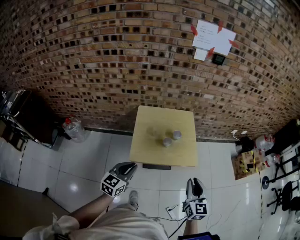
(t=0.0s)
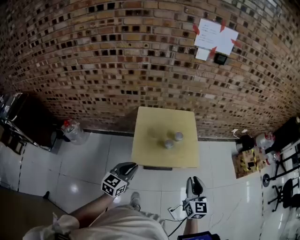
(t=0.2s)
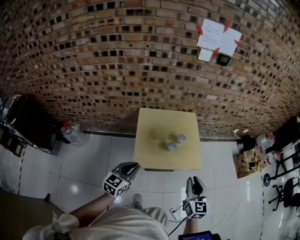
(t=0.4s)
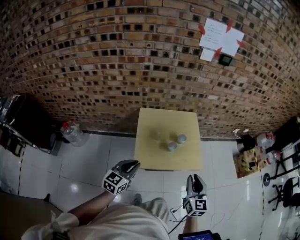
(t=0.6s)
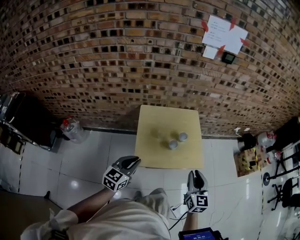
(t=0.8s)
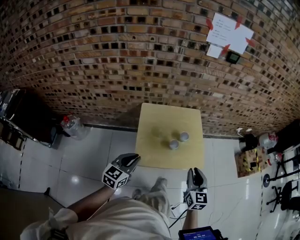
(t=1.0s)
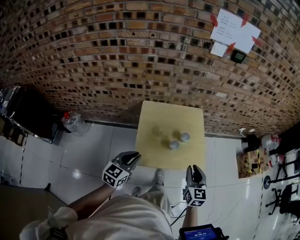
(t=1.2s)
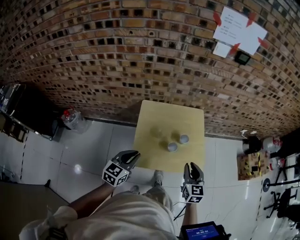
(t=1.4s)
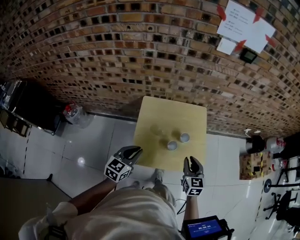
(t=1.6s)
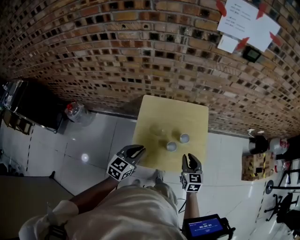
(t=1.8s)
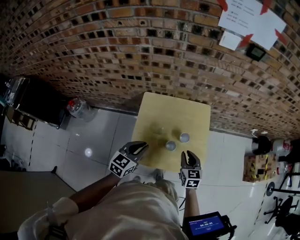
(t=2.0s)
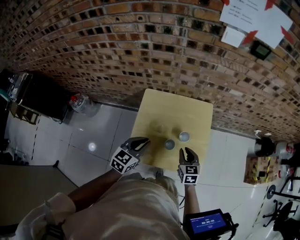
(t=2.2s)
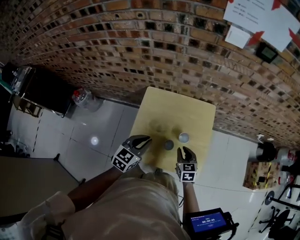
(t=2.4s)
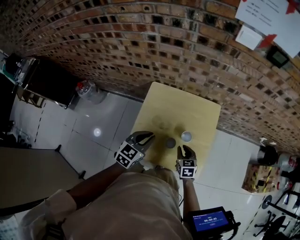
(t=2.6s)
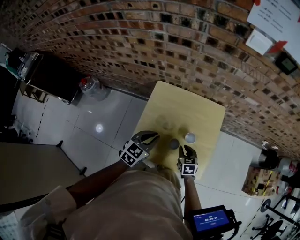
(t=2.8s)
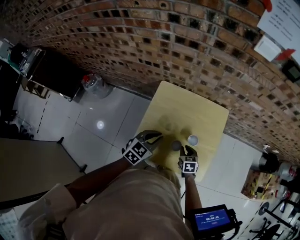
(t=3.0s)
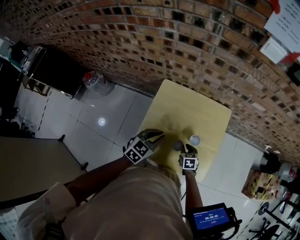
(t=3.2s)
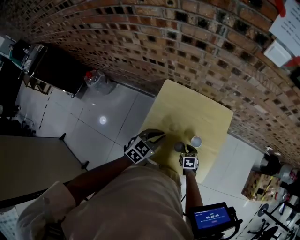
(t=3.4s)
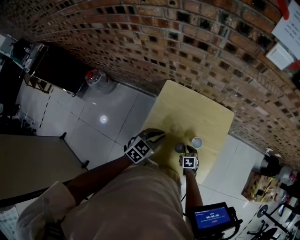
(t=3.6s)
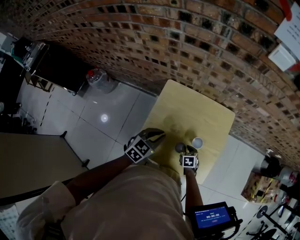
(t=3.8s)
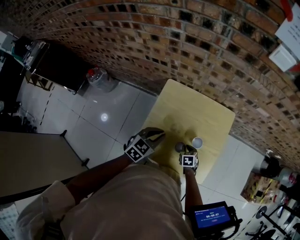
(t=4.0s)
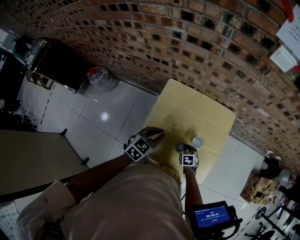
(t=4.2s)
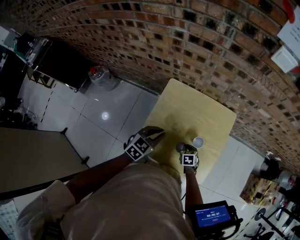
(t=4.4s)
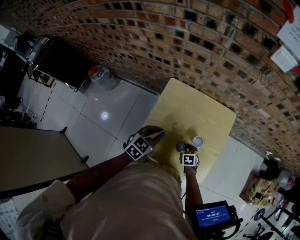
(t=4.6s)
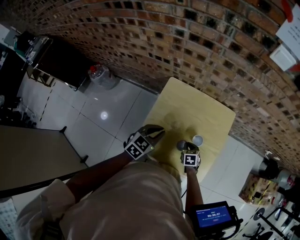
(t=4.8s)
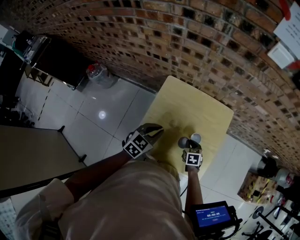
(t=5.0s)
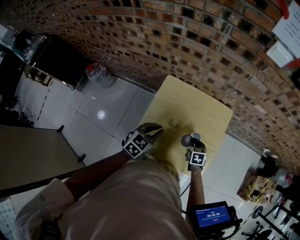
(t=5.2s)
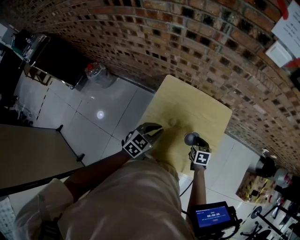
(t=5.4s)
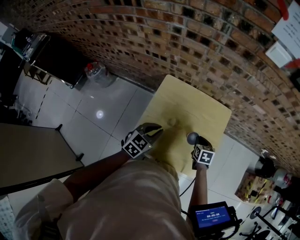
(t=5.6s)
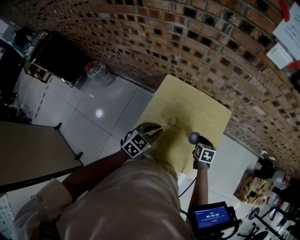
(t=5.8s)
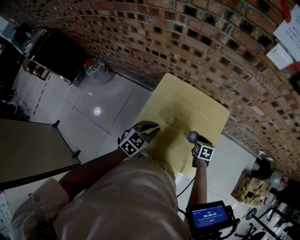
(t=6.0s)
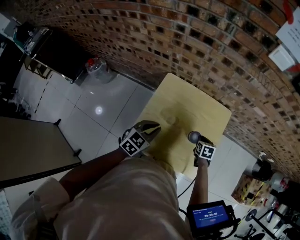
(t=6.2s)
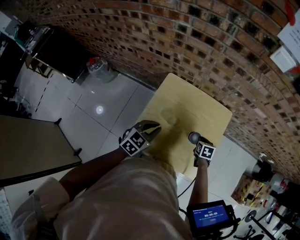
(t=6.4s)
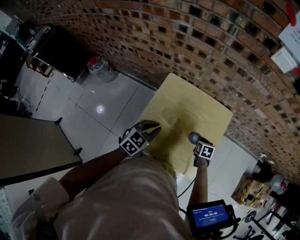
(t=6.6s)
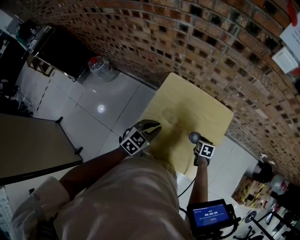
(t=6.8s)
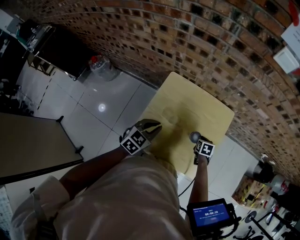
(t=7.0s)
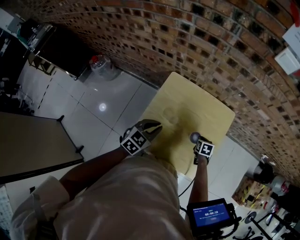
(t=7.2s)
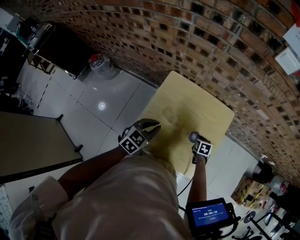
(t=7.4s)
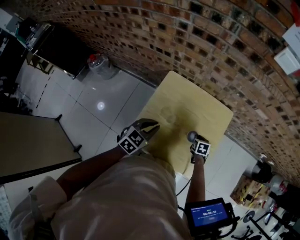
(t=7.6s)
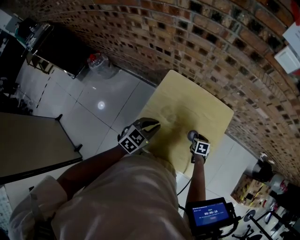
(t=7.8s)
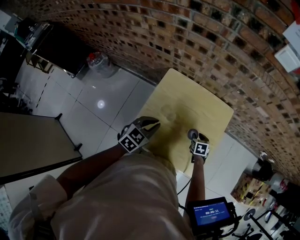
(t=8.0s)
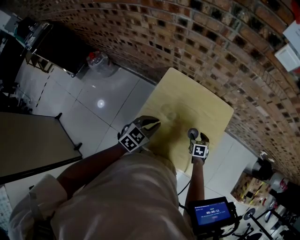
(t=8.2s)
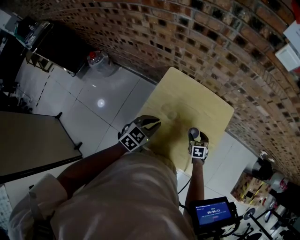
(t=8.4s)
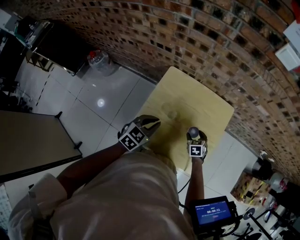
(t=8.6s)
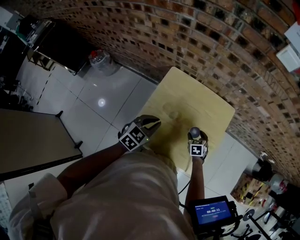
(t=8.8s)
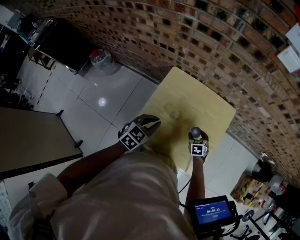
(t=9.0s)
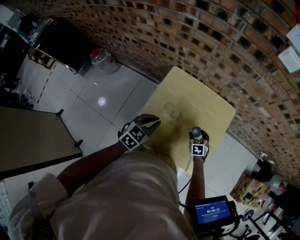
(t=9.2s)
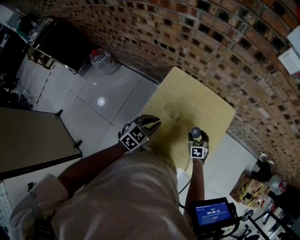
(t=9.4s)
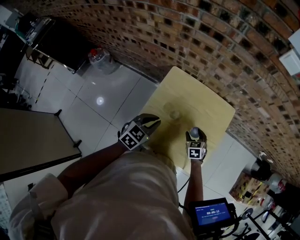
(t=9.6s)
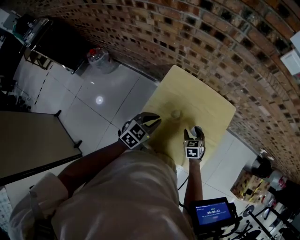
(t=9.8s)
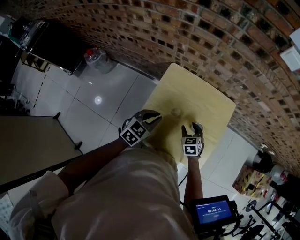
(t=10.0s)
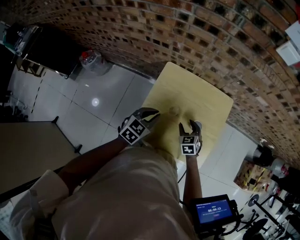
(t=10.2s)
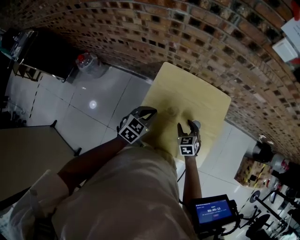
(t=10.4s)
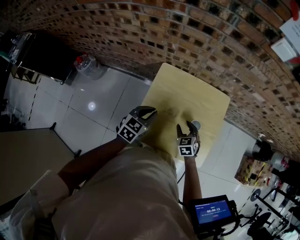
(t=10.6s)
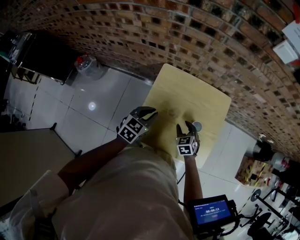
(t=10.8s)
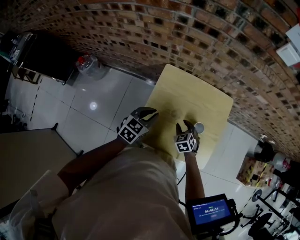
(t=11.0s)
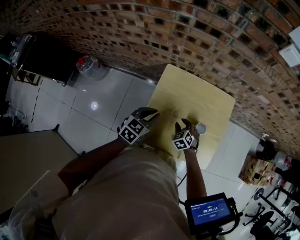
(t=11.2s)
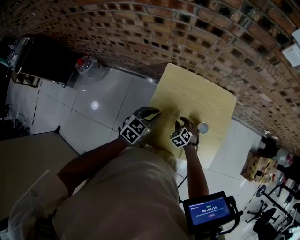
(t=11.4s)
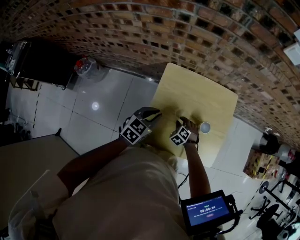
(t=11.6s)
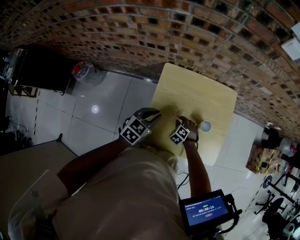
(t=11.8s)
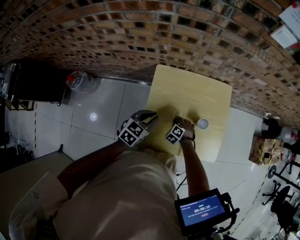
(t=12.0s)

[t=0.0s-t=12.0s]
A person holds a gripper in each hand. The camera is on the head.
t=0.0s to t=1.6s: The left gripper travels forward by roughly 20 cm; the right gripper moves forward and downward, roughly 25 cm.
t=1.6s to t=3.0s: The left gripper travels forward, to the right and downward by some 15 cm. Meanwhile the right gripper moves downward and forward, roughly 25 cm, and turns by roughly 30 degrees.
t=3.0s to t=4.4s: The right gripper is displaced downward by about 5 cm.
t=4.4s to t=6.0s: The right gripper is displaced to the right, upward and forward by roughly 15 cm.
t=6.0s to t=7.6s: The right gripper goes about 5 cm downward.
t=7.6s to t=9.0s: The right gripper changes its angle by roughly 20 degrees, and opens.
t=9.0s to t=10.4s: The left gripper ends up approximately 5 cm from where it was, while the right gripper heads to the left and upward, covering about 15 cm.
t=10.4s to t=12.0s: The right gripper heads downward and to the left, covering approximately 20 cm, rotates roughly 40 degrees, and closes up.

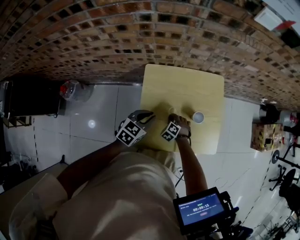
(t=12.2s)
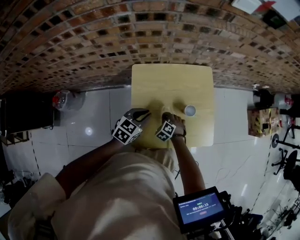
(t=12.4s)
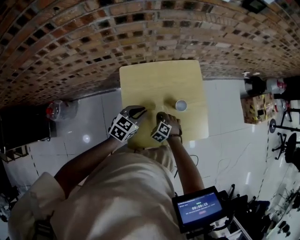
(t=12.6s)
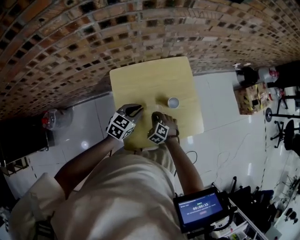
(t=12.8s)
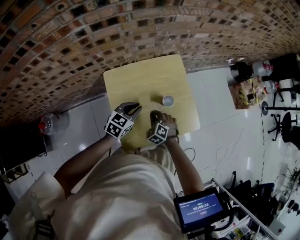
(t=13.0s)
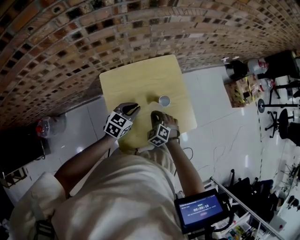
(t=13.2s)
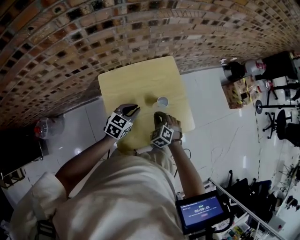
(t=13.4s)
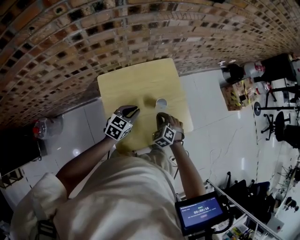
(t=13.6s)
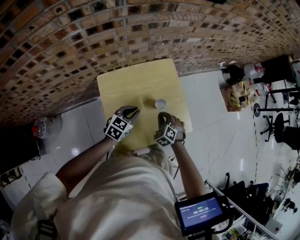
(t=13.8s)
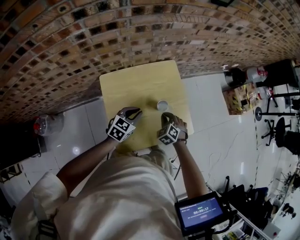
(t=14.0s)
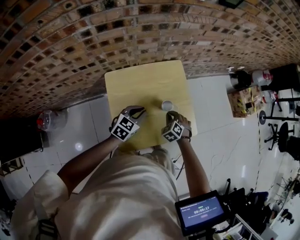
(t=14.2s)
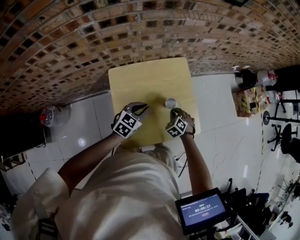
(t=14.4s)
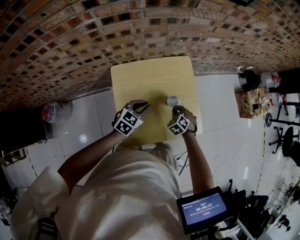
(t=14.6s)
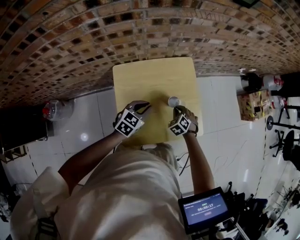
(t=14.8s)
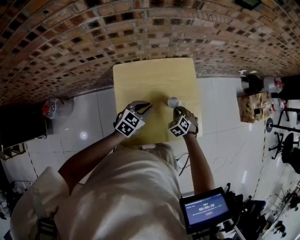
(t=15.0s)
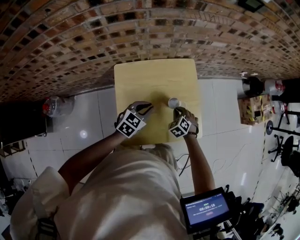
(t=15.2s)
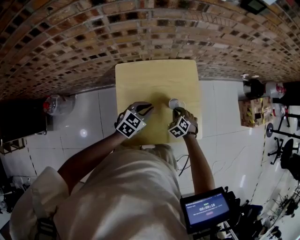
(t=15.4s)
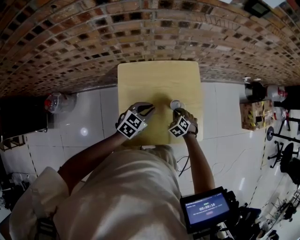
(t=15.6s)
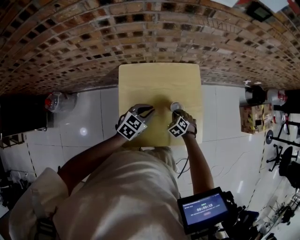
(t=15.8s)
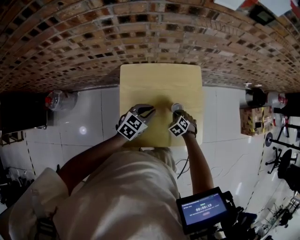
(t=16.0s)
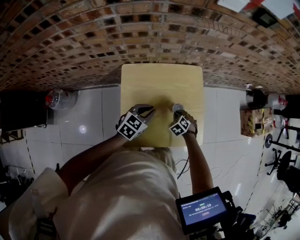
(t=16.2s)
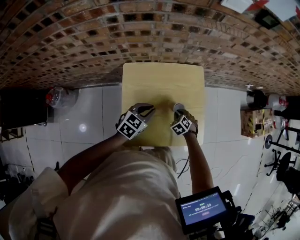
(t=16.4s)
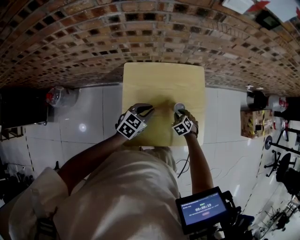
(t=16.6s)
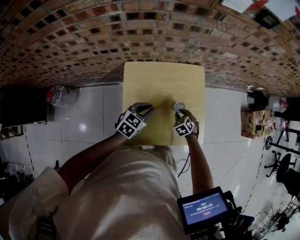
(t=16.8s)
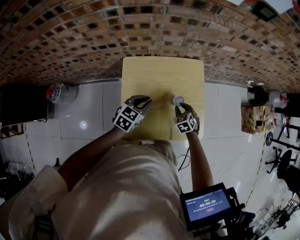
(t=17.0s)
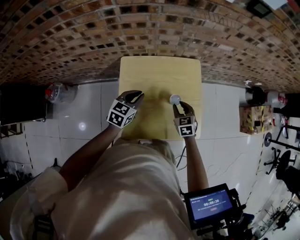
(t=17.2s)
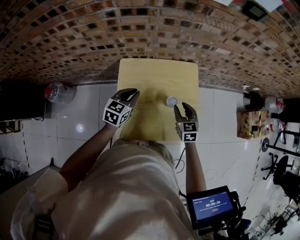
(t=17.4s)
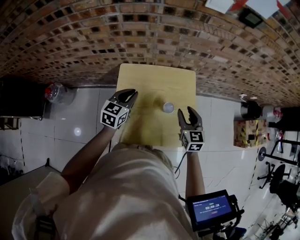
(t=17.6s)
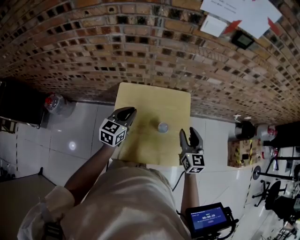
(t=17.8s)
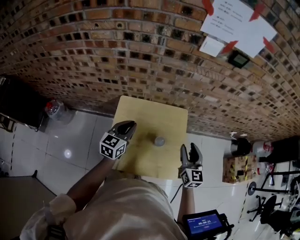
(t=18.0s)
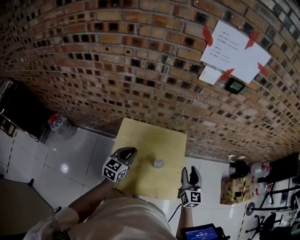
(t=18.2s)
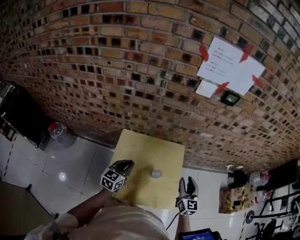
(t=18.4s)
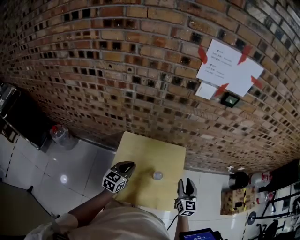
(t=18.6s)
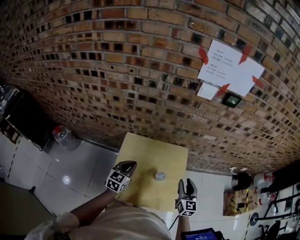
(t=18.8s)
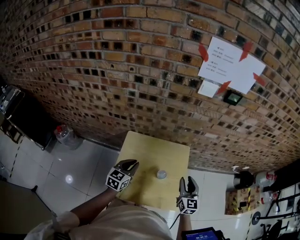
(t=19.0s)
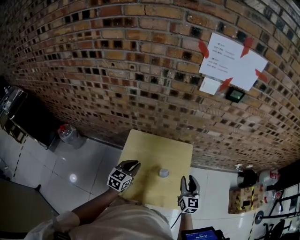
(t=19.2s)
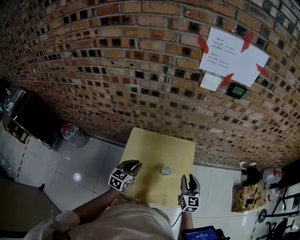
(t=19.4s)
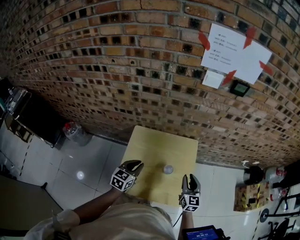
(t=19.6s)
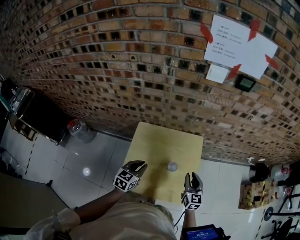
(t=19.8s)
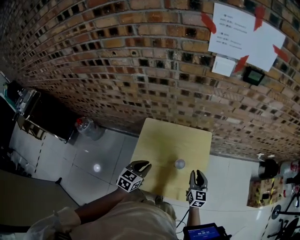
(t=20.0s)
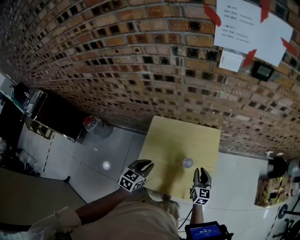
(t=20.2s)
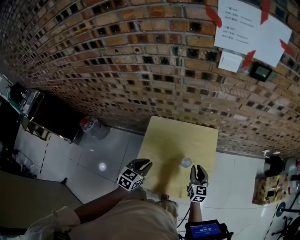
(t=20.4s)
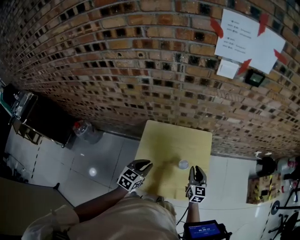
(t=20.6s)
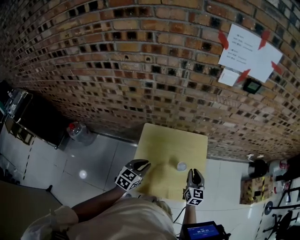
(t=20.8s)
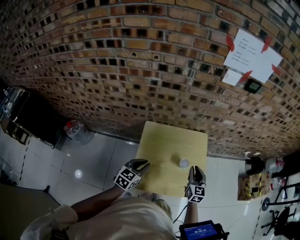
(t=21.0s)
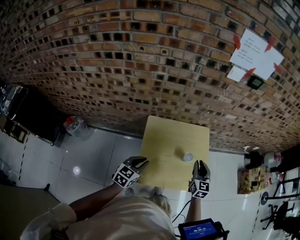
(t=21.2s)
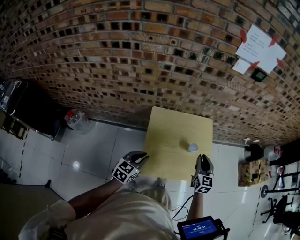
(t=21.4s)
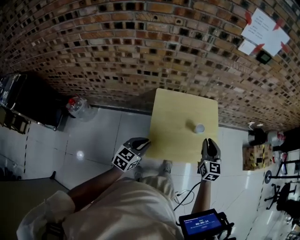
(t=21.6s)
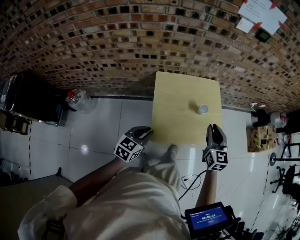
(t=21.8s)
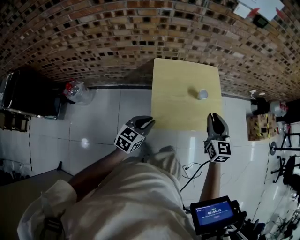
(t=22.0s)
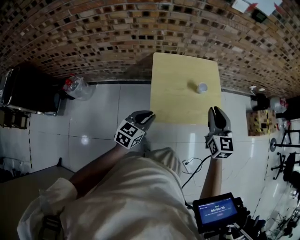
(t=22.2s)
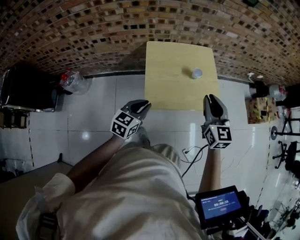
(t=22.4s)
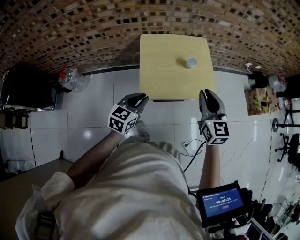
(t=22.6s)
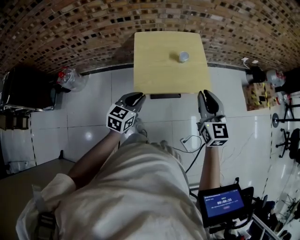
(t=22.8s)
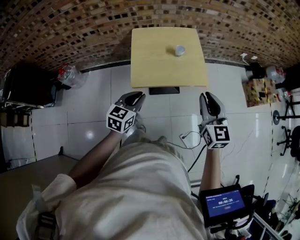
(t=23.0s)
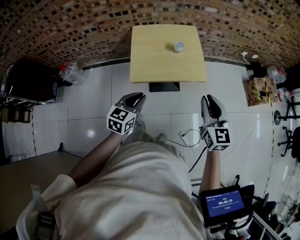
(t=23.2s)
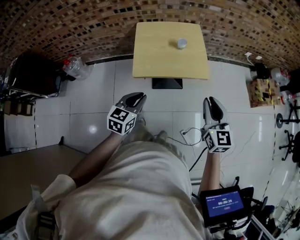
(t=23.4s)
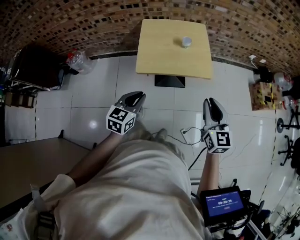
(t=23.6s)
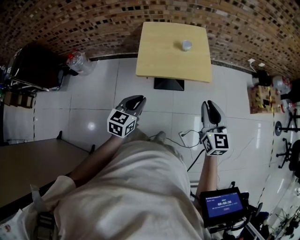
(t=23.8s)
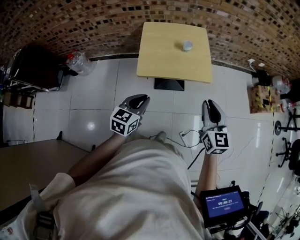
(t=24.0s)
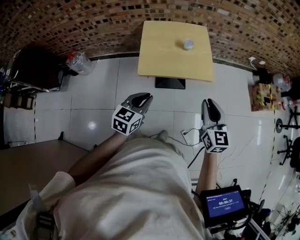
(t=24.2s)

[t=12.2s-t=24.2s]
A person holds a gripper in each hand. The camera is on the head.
t=12.2s to t=13.8s: The right gripper heads upward and to the right, covering about 20 cm, and rotates roughly 30 degrees, while the left gripper is displaced to the right and forward by roughly 10 cm.
t=13.8s to t=15.2s: The right gripper shifts approximately 5 cm downward.
t=15.2s to t=16.6s: The grippers stay close to where they were, moving slightly.
t=16.6s to t=18.2s: The right gripper is displaced upward and to the right by about 35 cm, and tips its fingers upward by roughly 60 degrees, while the left gripper goes roughly 10 cm upward, and changes its angle by some 30 degrees.
t=18.2s to t=19.8s: The left gripper moves approximately 5 cm. The right gripper moves downward, approximately 10 cm.
t=19.8s to t=21.2s: The left gripper heads to the left and backward, covering roughly 15 cm; the right gripper shifts some 10 cm to the left and upward.
t=21.2s to t=22.6s: The grippers both shift backward by about 20 cm.
t=22.6s to t=24.2s: The grippers both shift backward and to the right by approximately 20 cm.
